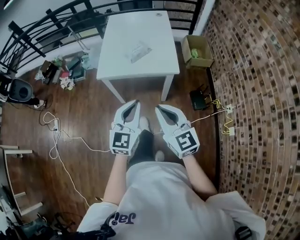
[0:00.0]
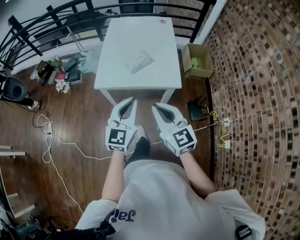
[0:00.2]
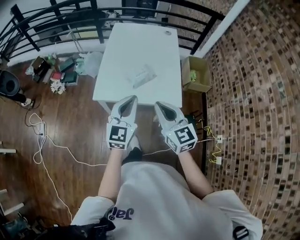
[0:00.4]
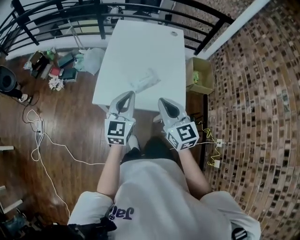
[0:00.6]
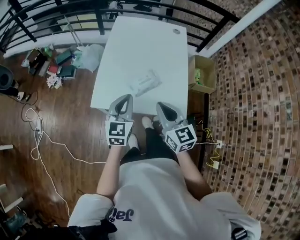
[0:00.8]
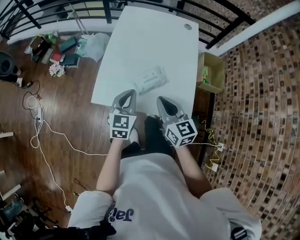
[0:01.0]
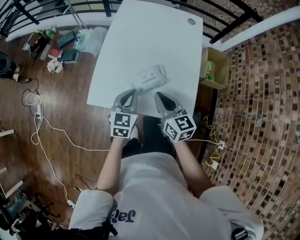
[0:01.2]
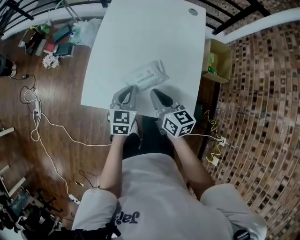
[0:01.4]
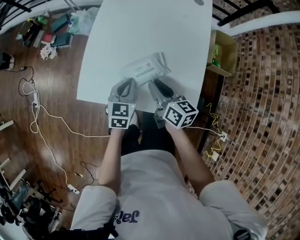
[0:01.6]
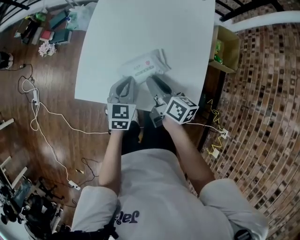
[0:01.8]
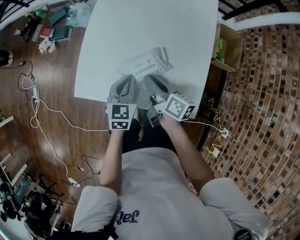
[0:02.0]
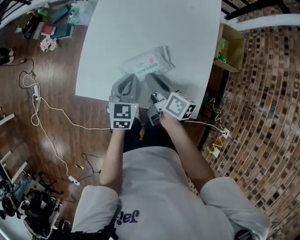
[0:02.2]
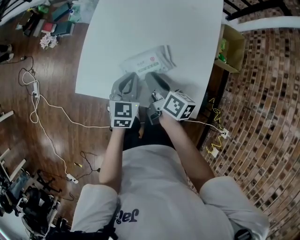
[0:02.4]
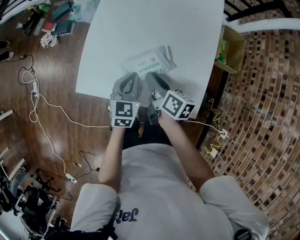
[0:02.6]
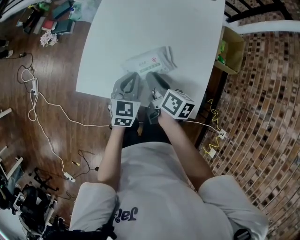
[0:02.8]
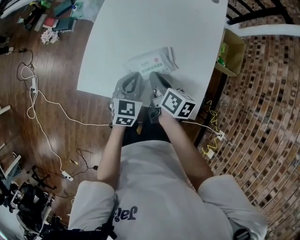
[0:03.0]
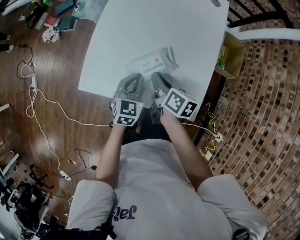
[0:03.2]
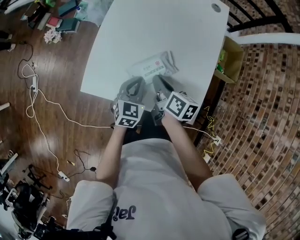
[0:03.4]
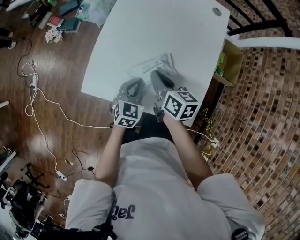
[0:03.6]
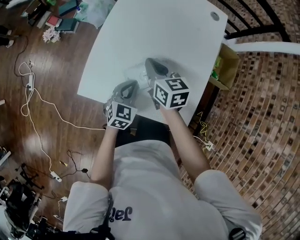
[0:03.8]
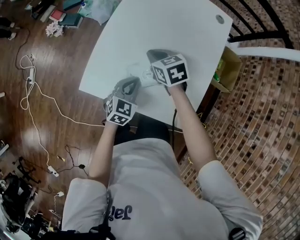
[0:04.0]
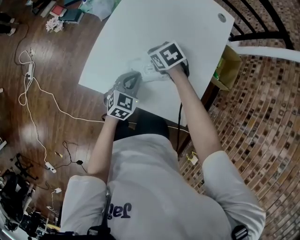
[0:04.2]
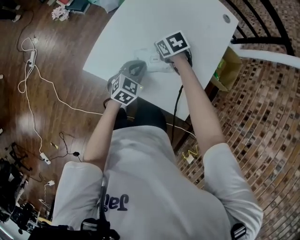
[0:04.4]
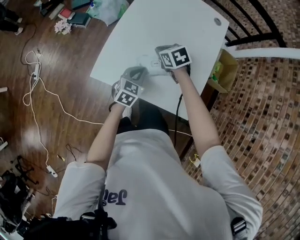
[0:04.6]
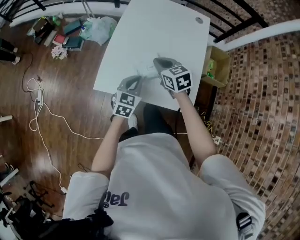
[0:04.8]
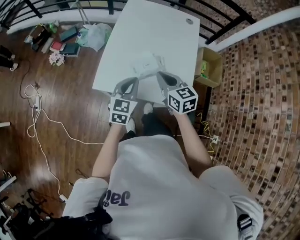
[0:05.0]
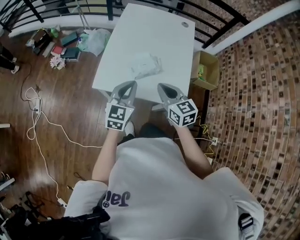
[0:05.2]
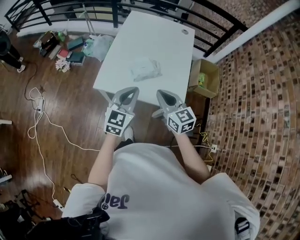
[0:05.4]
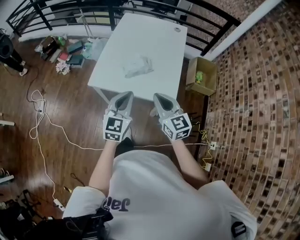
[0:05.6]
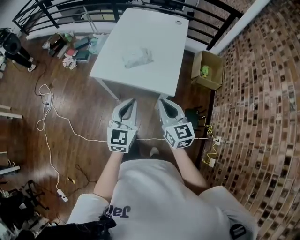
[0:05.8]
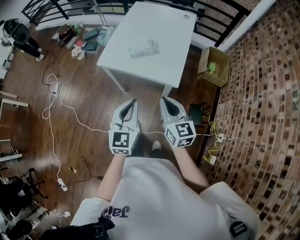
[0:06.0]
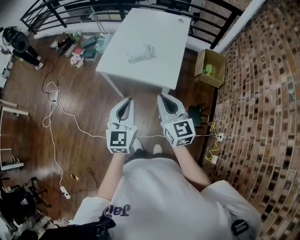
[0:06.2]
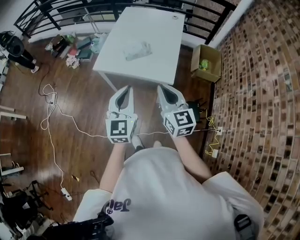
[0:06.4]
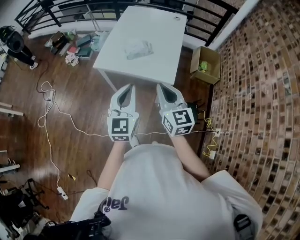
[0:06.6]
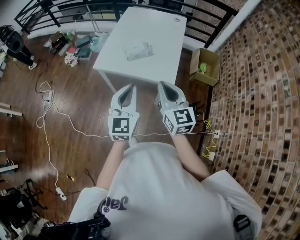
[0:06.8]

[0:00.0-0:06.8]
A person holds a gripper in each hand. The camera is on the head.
0:00.0 to 0:01.4: The two grippers travel together, forward, about 40 cm. The two grippers go some 20 cm downward. The left gripper turns by roughly 30 degrees. Meanwhile the right gripper changes its angle by approximately 30 degrees.
0:01.4 to 0:02.8: The right gripper travels downward by approximately 5 cm, swivels about 30 degrees, and opens its fingers.
0:02.8 to 0:04.0: The right gripper is displaced forward and to the left by approximately 15 cm, rolls counterclockwise, seen from behind, by about 50 degrees, and closes its fingers.
0:04.0 to 0:05.4: The right gripper goes some 35 cm backward and upward, and angles its fingers upward, by about 30 degrees. The left gripper heads upward and backward, covering some 30 cm, and turns by roughly 30 degrees.
0:05.4 to 0:06.8: Both grippers move backward and upward, some 20 cm.

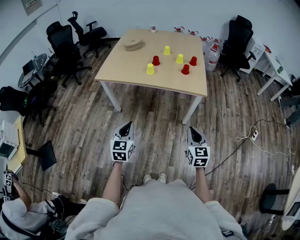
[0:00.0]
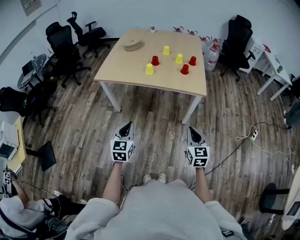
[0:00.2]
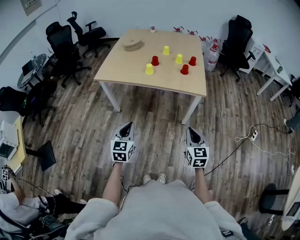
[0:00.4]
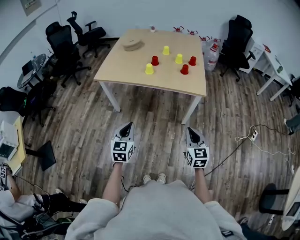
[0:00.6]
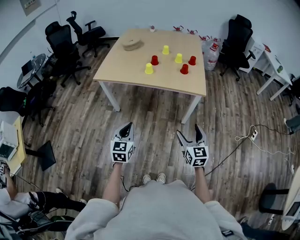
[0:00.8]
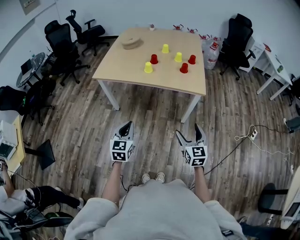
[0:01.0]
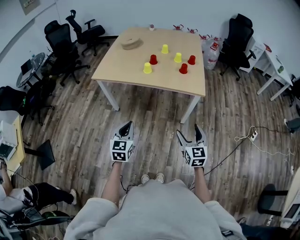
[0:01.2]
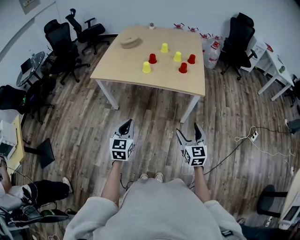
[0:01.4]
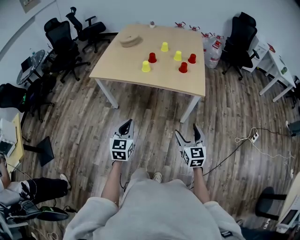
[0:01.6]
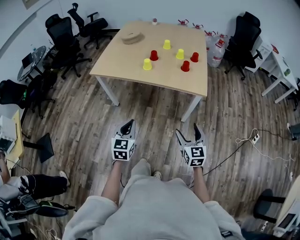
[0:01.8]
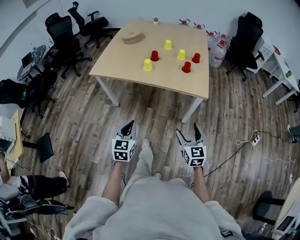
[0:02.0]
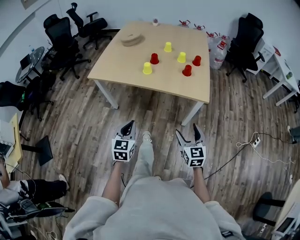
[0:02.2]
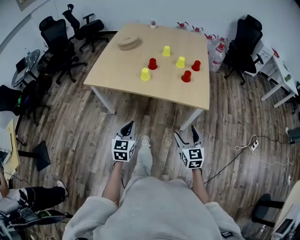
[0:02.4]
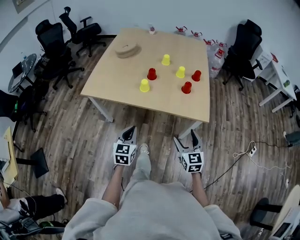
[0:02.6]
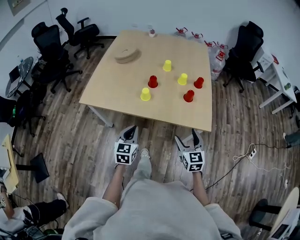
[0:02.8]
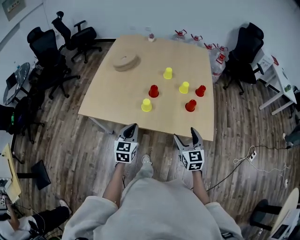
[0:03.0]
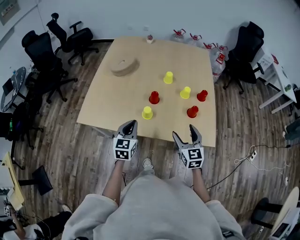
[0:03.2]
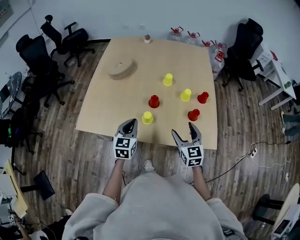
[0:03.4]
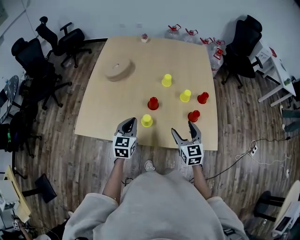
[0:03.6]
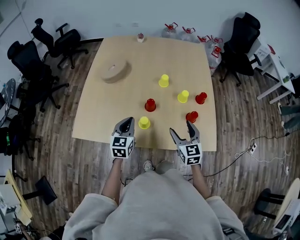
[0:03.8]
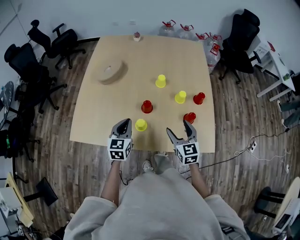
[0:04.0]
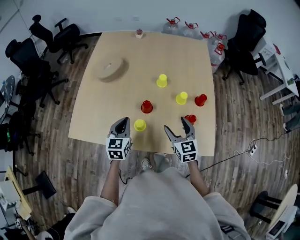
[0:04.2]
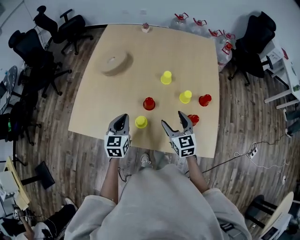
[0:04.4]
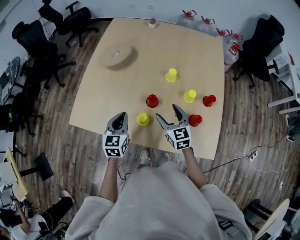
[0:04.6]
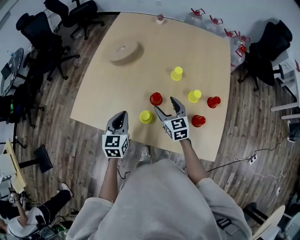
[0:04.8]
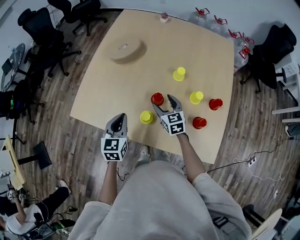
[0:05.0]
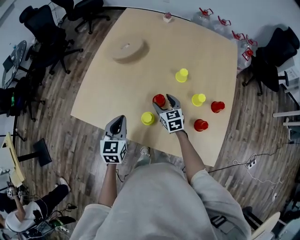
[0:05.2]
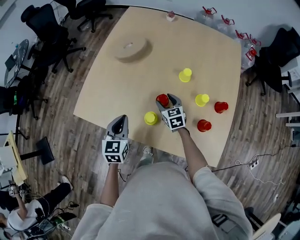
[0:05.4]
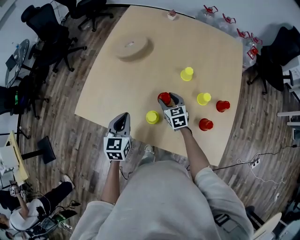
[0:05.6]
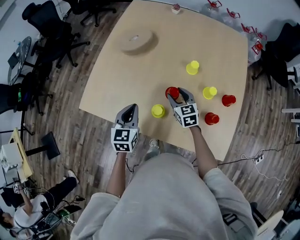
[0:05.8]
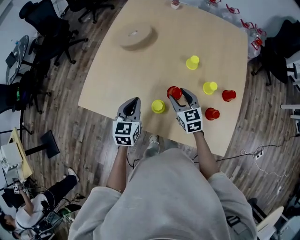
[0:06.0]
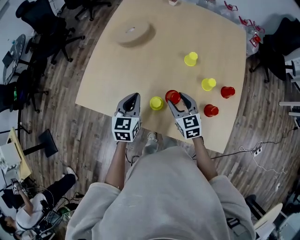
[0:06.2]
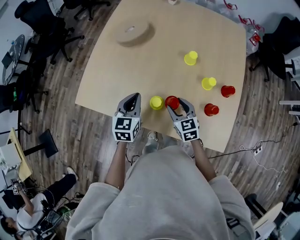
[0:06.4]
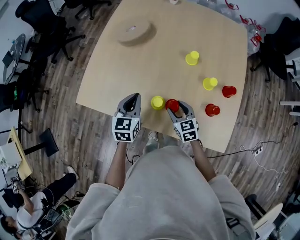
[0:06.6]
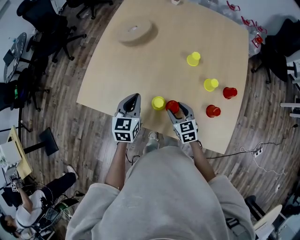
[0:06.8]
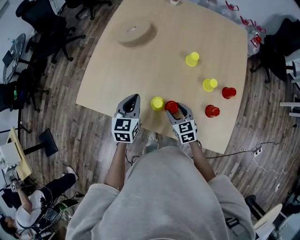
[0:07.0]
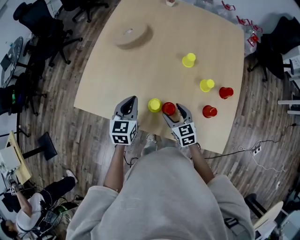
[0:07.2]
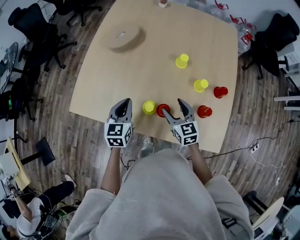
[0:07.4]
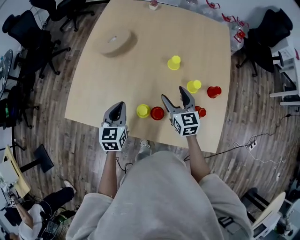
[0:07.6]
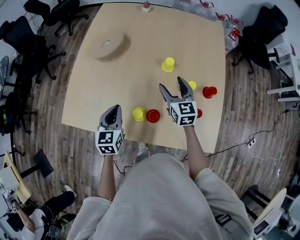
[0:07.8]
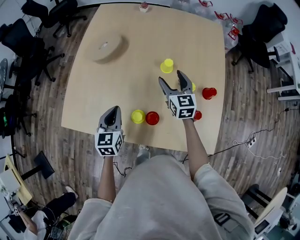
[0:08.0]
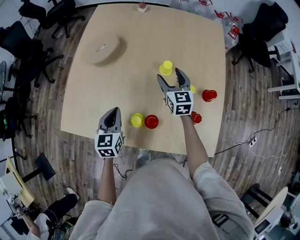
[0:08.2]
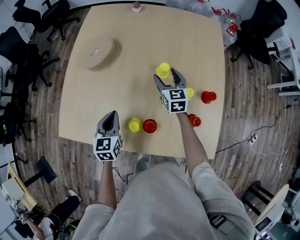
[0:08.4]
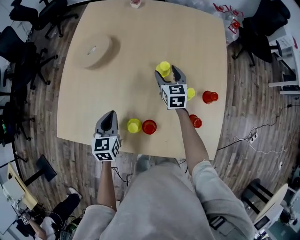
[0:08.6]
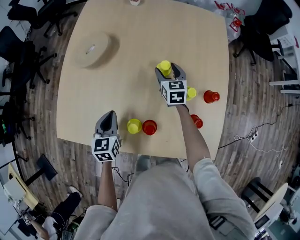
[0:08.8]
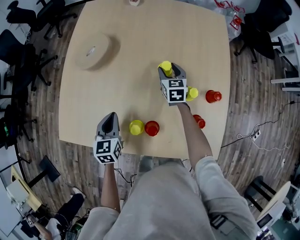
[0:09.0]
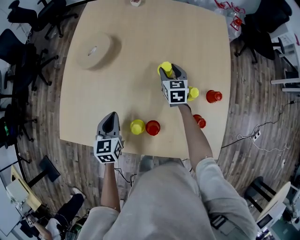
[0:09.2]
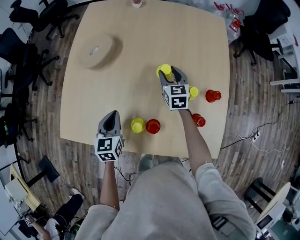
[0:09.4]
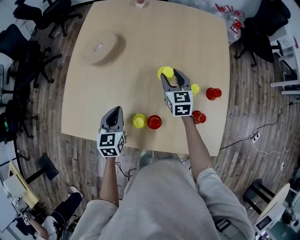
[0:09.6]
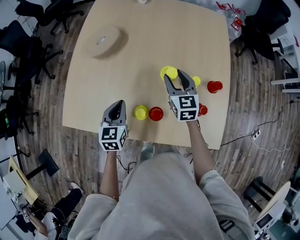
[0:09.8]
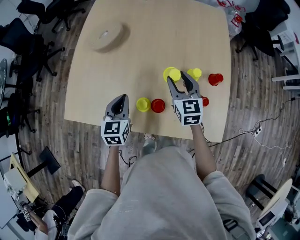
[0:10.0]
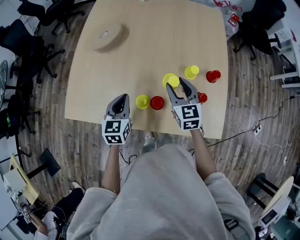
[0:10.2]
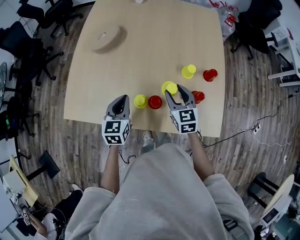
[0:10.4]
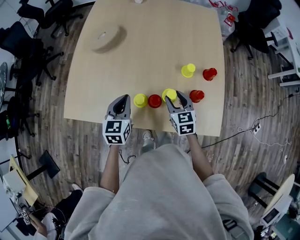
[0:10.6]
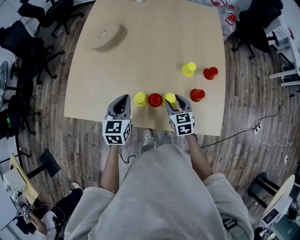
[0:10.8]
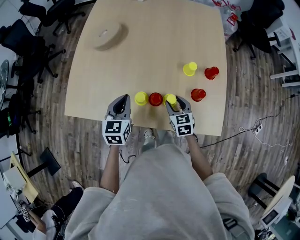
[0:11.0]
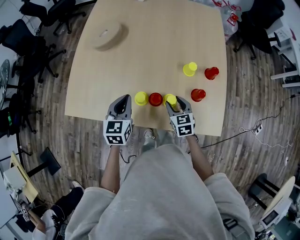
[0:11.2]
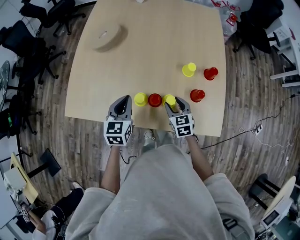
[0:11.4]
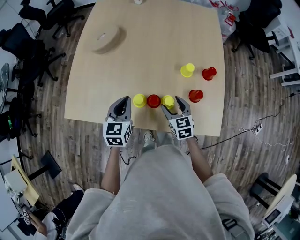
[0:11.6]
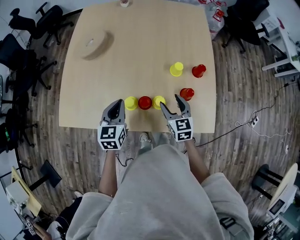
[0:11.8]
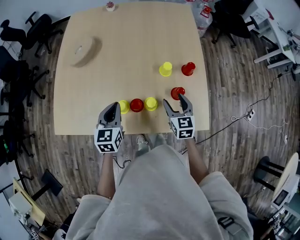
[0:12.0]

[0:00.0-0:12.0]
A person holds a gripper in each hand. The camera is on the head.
0:00.0 to 0:01.6: The right gripper opens its fingers; the left gripper shifts roughly 5 cm to the right.
0:01.6 to 0:03.0: The grippers both shift forward by about 35 cm.
0:03.0 to 0:04.4: The grippers both shift forward by approximately 20 cm.
0:04.4 to 0:06.0: The right gripper goes approximately 10 cm forward, to the left and downward.
0:07.6 to 0:09.0: The left gripper moves forward, roughly 5 cm, while the right gripper goes roughly 20 cm forward and downward.
0:09.0 to 0:10.4: The right gripper goes about 25 cm backward; the left gripper goes roughly 5 cm backward.
0:10.4 to 0:12.0: The right gripper heads to the right, covering approximately 10 cm, and moves about 10 cm downward and comes back.

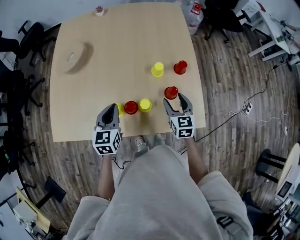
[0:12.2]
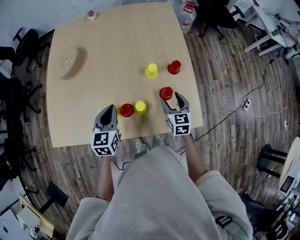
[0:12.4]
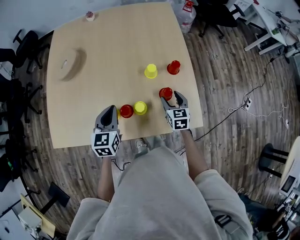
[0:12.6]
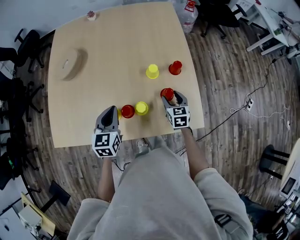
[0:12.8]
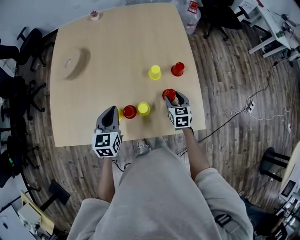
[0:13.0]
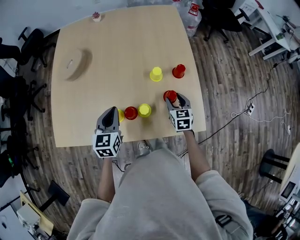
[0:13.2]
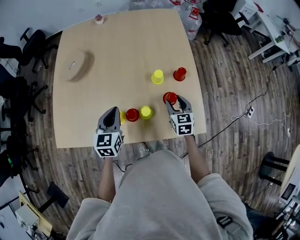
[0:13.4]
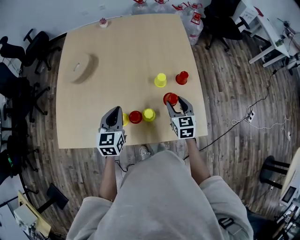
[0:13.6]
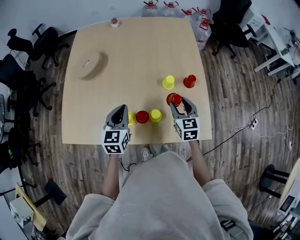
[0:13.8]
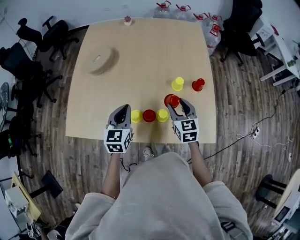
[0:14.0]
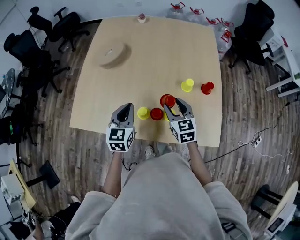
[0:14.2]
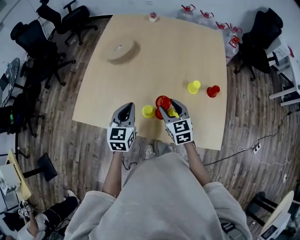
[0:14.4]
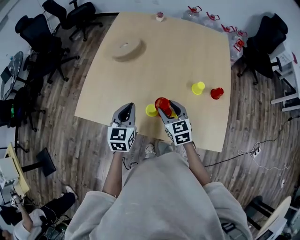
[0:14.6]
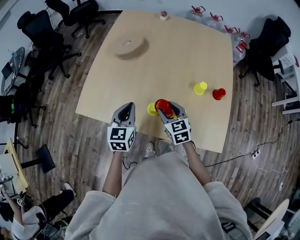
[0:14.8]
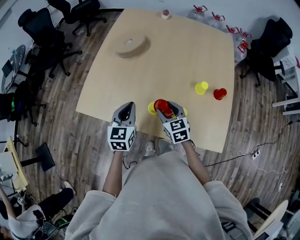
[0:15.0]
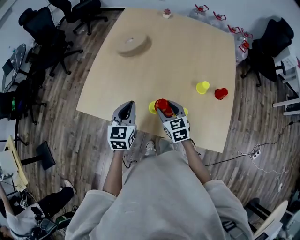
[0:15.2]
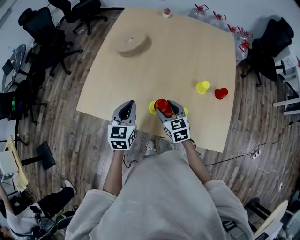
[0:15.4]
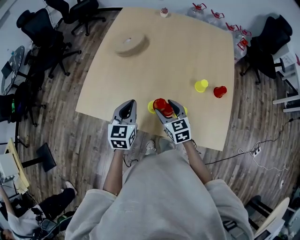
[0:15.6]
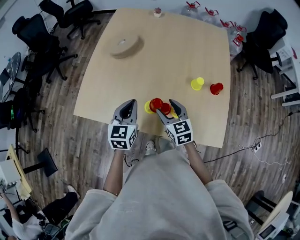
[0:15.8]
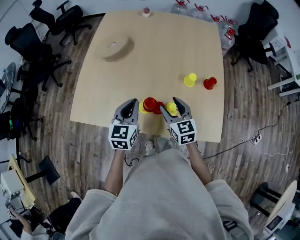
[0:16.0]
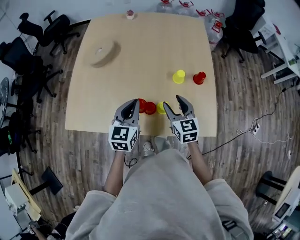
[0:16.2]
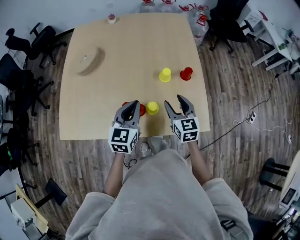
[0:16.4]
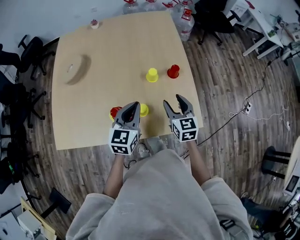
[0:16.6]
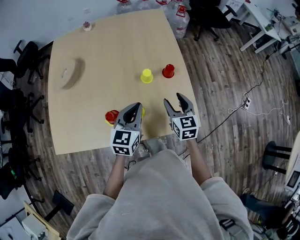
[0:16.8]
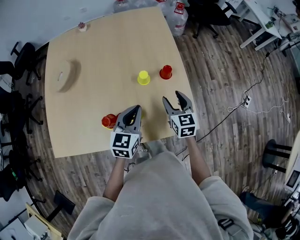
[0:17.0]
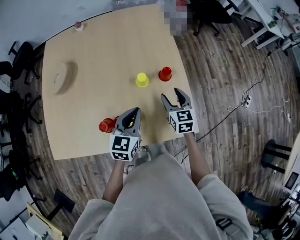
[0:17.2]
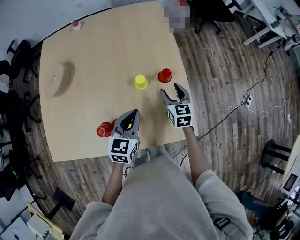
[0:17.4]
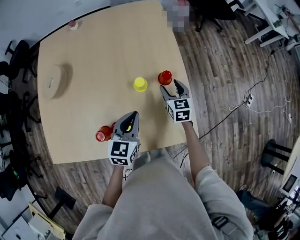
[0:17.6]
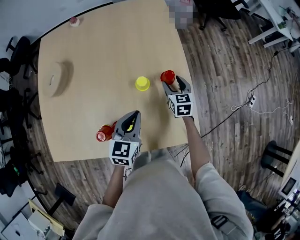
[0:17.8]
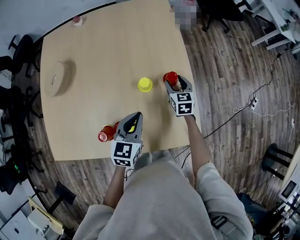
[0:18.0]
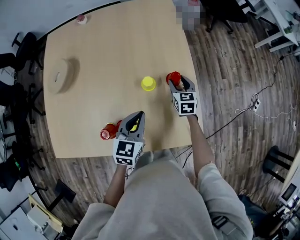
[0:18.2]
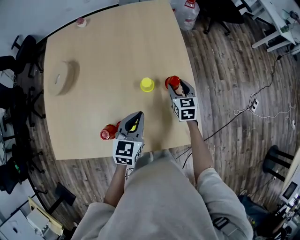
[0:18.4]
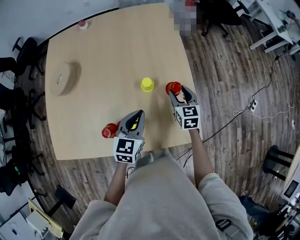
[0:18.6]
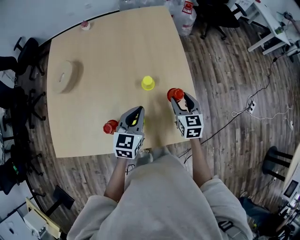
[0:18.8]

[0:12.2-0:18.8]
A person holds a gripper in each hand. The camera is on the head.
0:12.2 to 0:13.8: The right gripper travels downward and back again, roughly 5 cm each way.
0:13.8 to 0:15.4: The left gripper is displaced to the left by about 15 cm, while the right gripper is displaced to the left by some 25 cm, and swivels about 30 degrees.
0:15.4 to 0:17.2: The right gripper shifts by about 30 cm, and rotates roughly 40 degrees; the left gripper shifts by about 30 cm, and turns by about 30 degrees.
0:17.2 to 0:18.8: The right gripper goes forward and returns, about 10 cm each way.
